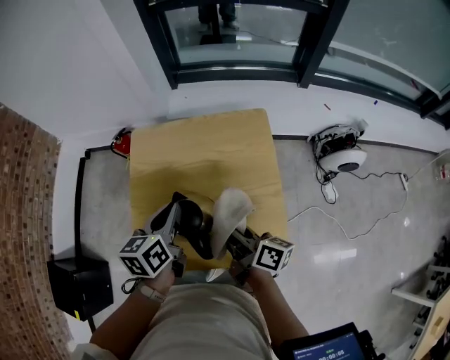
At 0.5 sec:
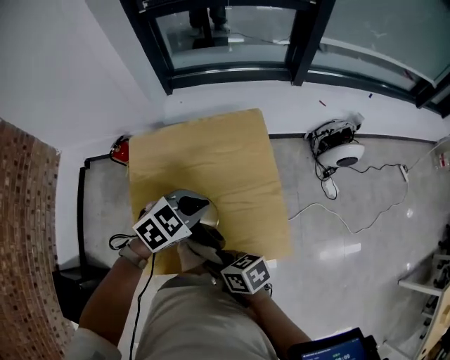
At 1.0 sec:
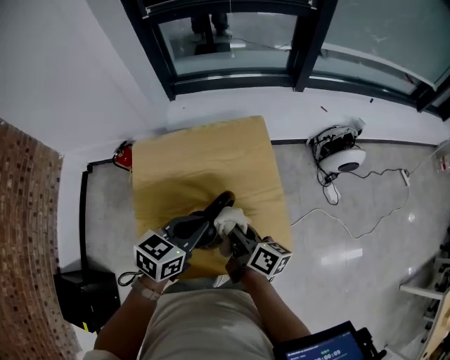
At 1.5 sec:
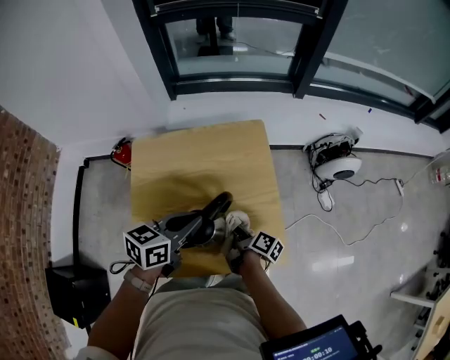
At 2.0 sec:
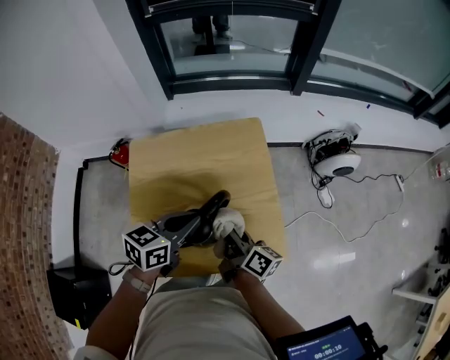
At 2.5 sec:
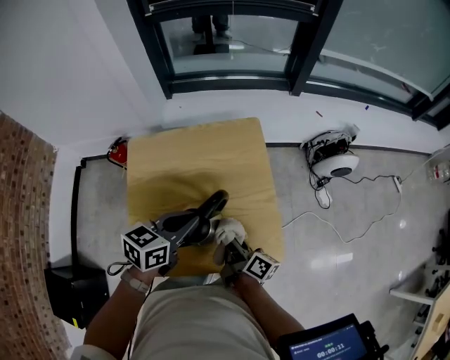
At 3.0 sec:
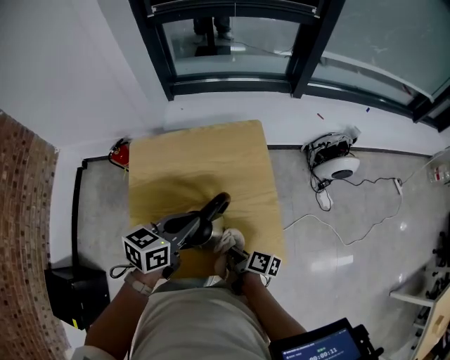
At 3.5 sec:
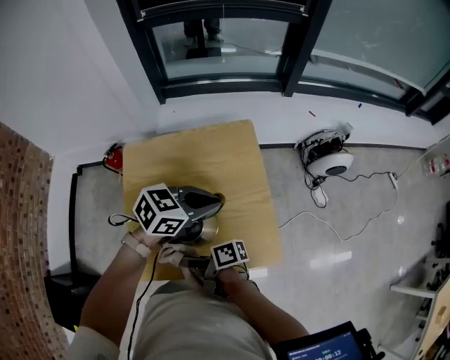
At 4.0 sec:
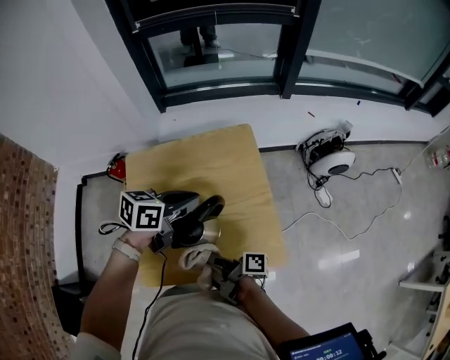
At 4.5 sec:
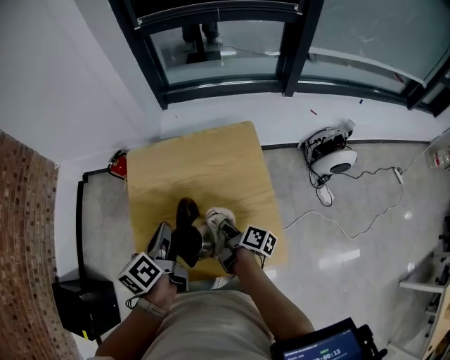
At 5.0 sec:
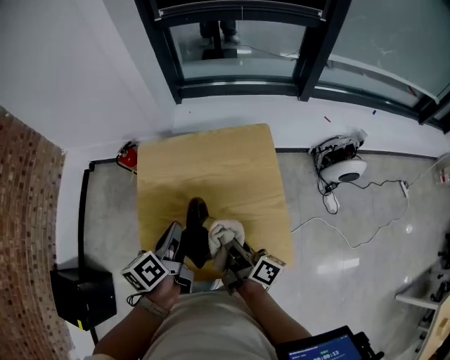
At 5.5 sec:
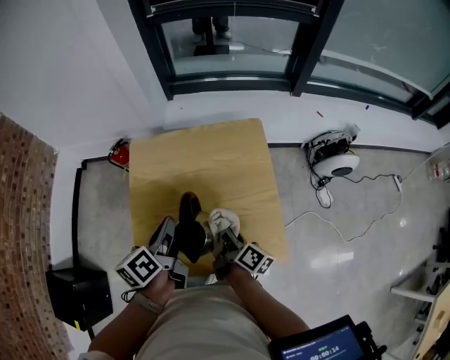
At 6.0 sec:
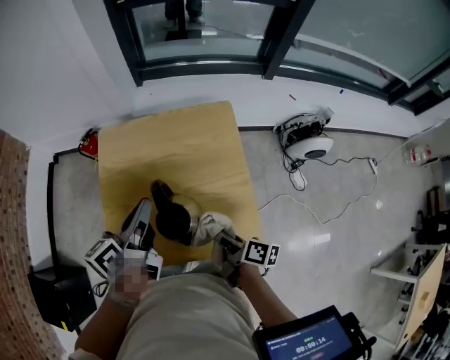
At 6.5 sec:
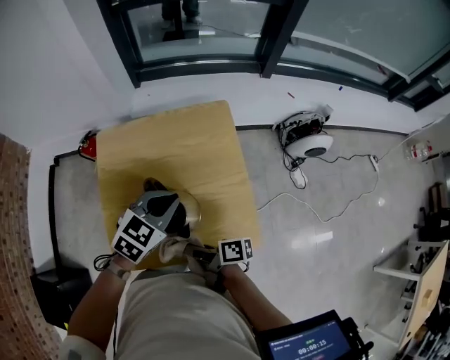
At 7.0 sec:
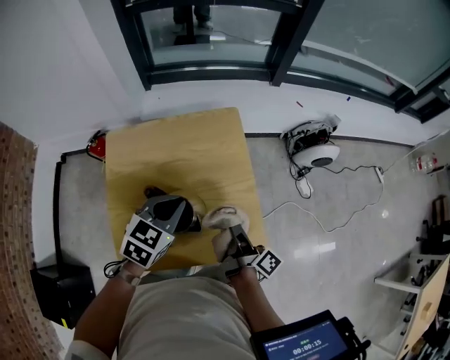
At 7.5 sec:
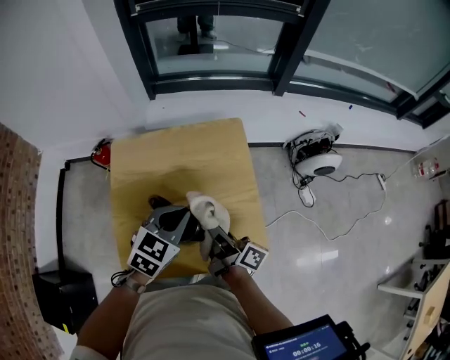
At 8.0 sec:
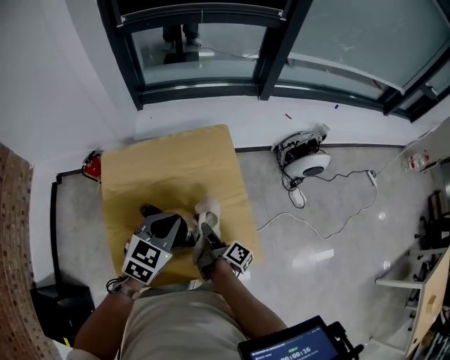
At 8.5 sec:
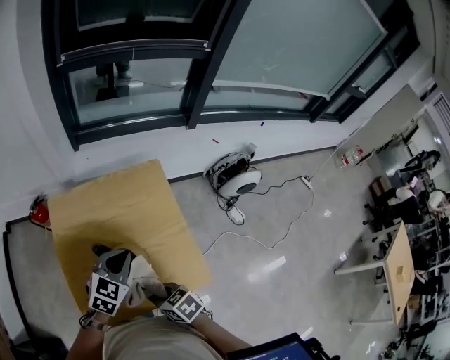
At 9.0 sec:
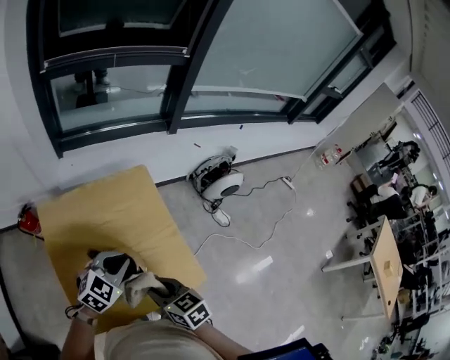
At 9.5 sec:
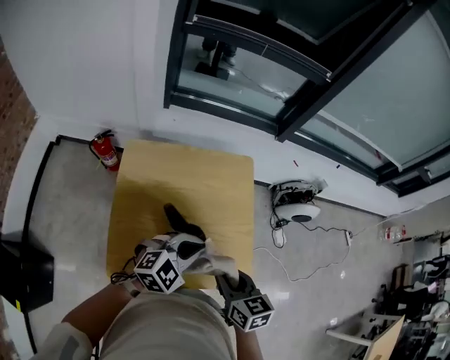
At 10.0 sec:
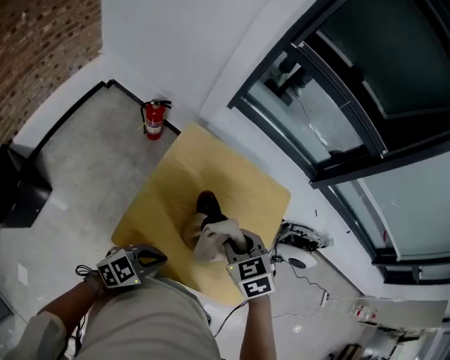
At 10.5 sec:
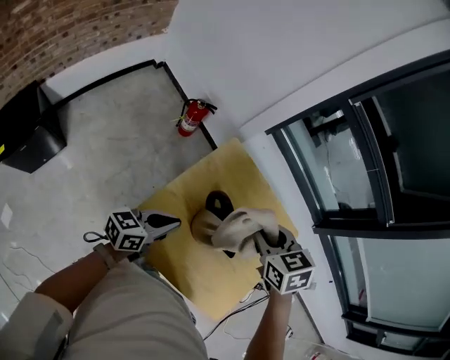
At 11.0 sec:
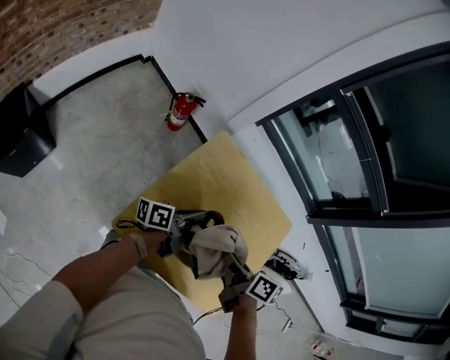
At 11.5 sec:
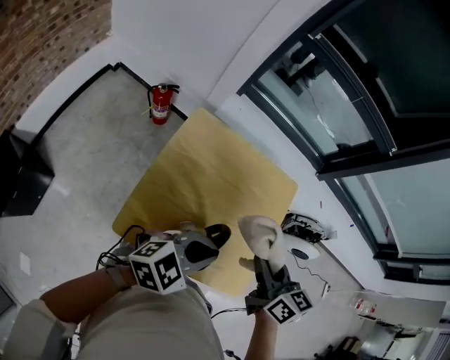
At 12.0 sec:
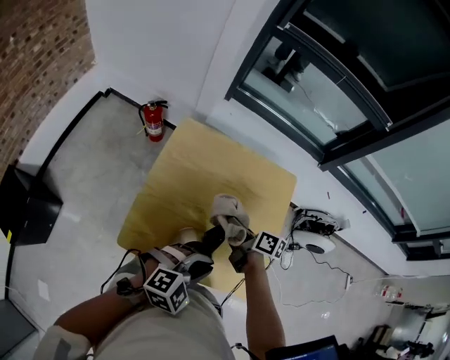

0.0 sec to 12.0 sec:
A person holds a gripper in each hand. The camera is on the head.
0.0 sec to 2.0 sec: The right gripper travels downward and back again, about 15 cm each way, while the left gripper moves approximately 5 cm, and changes its angle by roughly 40 degrees.
2.0 sec to 4.0 sec: The right gripper moves some 10 cm downward and comes back, and turns by approximately 40 degrees. The left gripper moves approximately 5 cm.
4.0 sec to 6.0 sec: The right gripper heads to the right, covering about 10 cm, and swivels about 30 degrees. The left gripper heads to the left, covering approximately 10 cm, and swivels about 50 degrees.
6.0 sec to 8.0 sec: The left gripper is displaced to the right and downward by about 10 cm, and rolls clockwise, seen from behind, by approximately 60 degrees. Meanwhile the right gripper goes left and right, about 15 cm each way, reversing 2 times, and changes its angle by about 30 degrees.
8.0 sec to 10.0 sec: The left gripper is displaced backward and to the left by some 20 cm, and rotates roughly 20 degrees; the right gripper moves upward and to the left, approximately 20 cm, and rolls counterclockwise, seen from behind, by some 110 degrees.
10.0 sec to 12.0 sec: The left gripper goes upward and returns, some 10 cm each way, and rotates about 40 degrees, while the right gripper goes up and down, some 20 cm each way, reversing 3 times, and twists roughly 70 degrees clockwise, seen from behind.

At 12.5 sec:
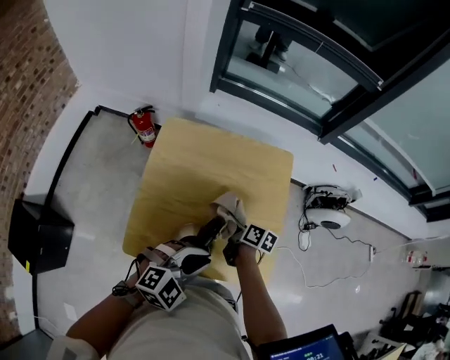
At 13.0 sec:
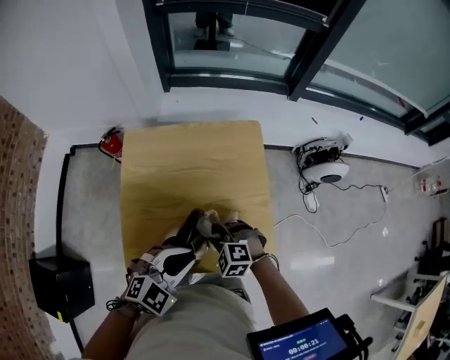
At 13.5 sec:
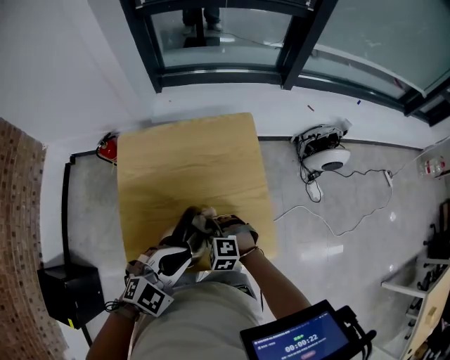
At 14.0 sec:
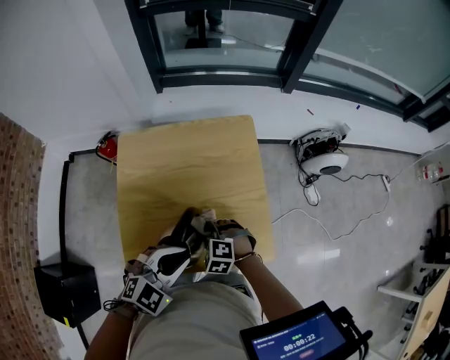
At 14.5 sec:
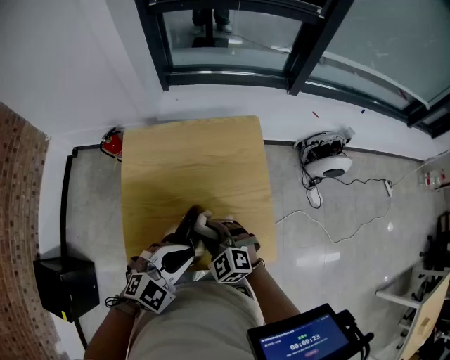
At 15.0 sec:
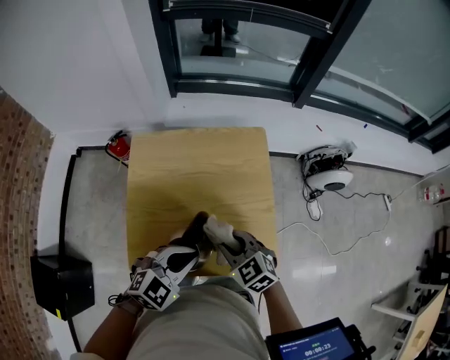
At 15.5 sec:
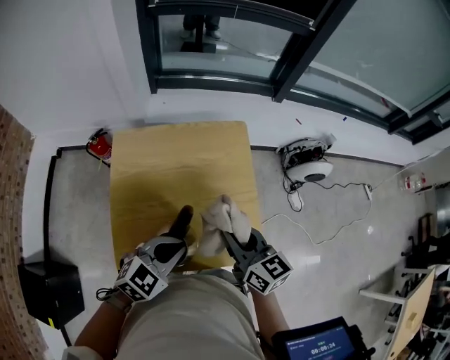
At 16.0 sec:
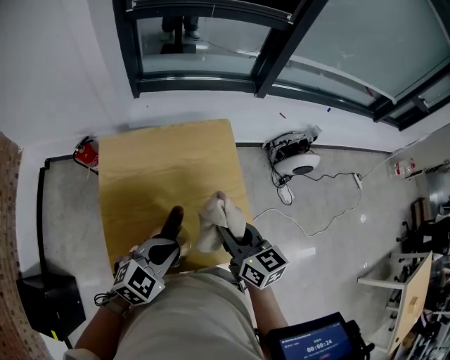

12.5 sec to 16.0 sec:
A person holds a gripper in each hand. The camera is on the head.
12.5 sec to 14.5 sec: The right gripper shifts some 10 cm backward and upward, and rolls counterclockwise, seen from behind, by about 90 degrees.
14.5 sec to 16.0 sec: The right gripper heads upward and to the right, covering approximately 15 cm, and rolls clockwise, seen from behind, by some 50 degrees.

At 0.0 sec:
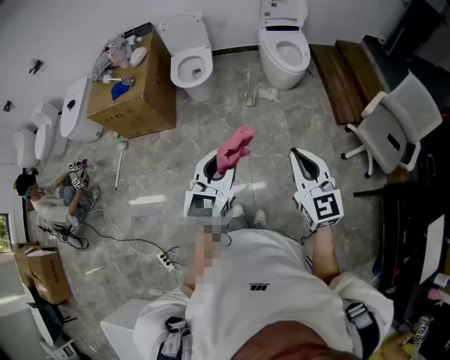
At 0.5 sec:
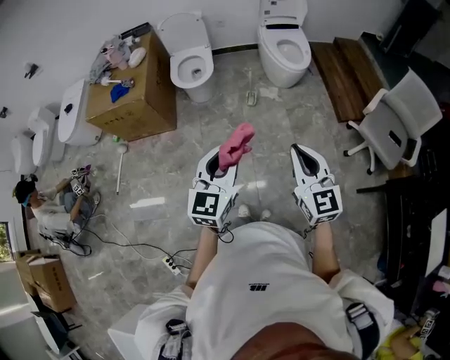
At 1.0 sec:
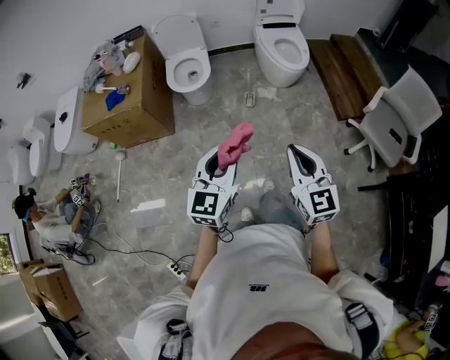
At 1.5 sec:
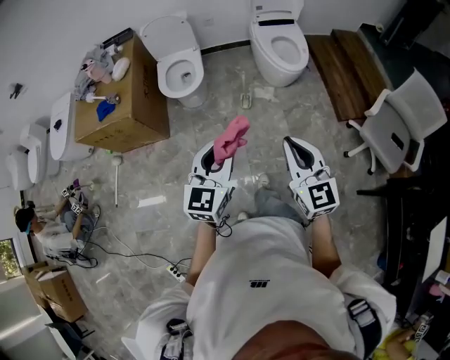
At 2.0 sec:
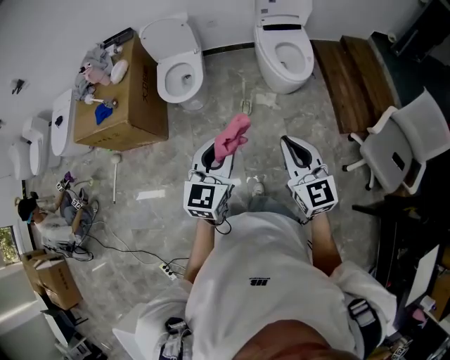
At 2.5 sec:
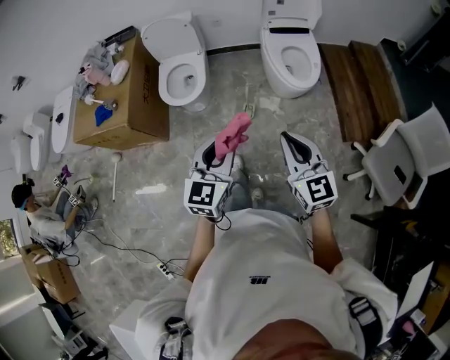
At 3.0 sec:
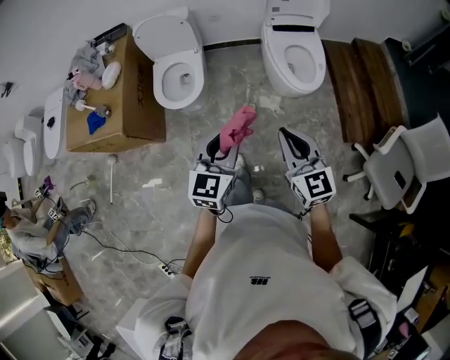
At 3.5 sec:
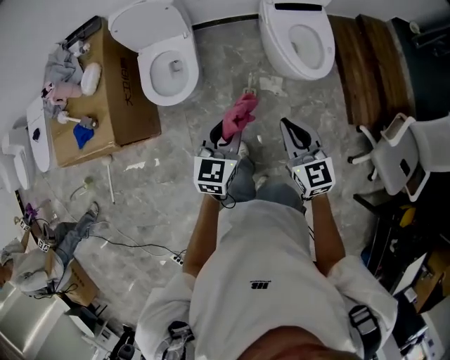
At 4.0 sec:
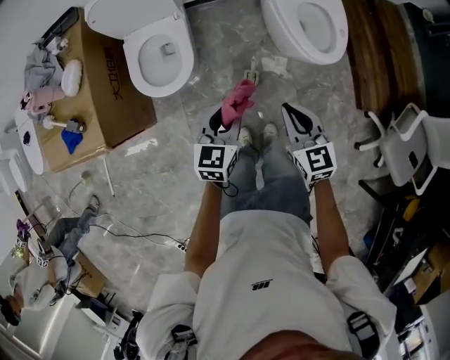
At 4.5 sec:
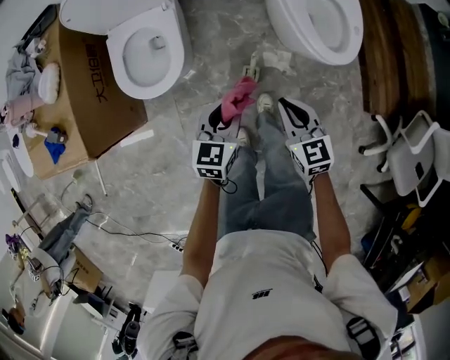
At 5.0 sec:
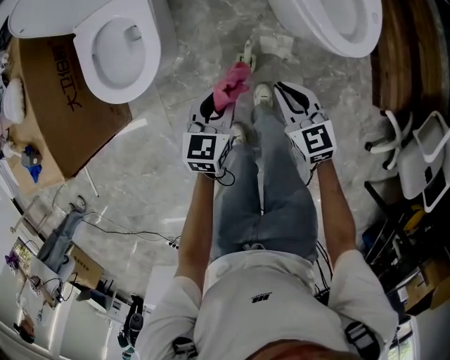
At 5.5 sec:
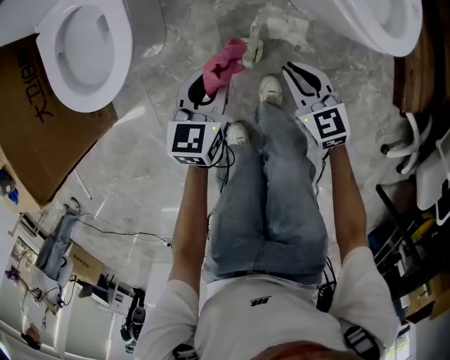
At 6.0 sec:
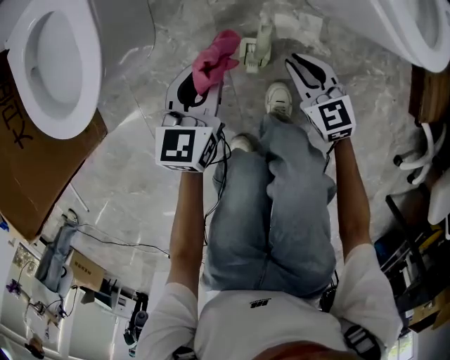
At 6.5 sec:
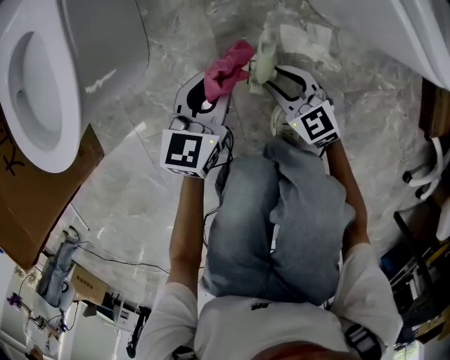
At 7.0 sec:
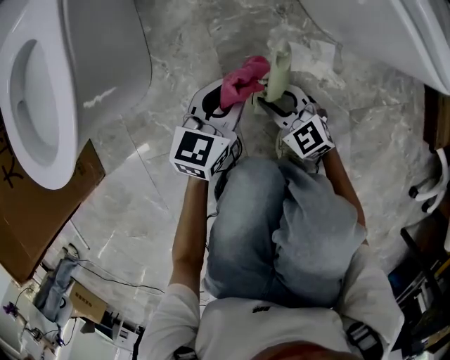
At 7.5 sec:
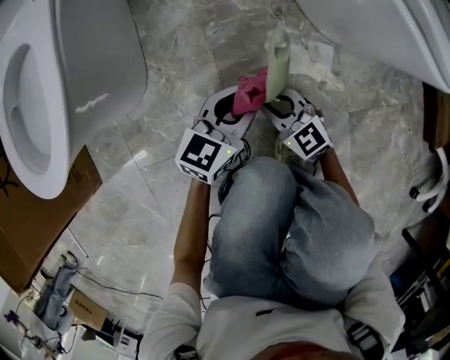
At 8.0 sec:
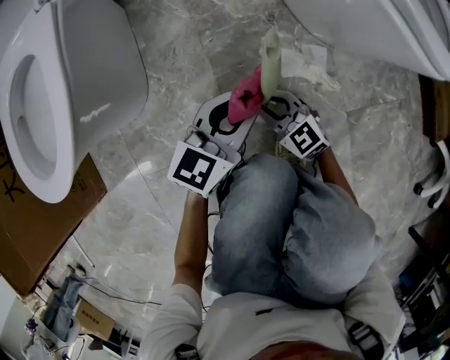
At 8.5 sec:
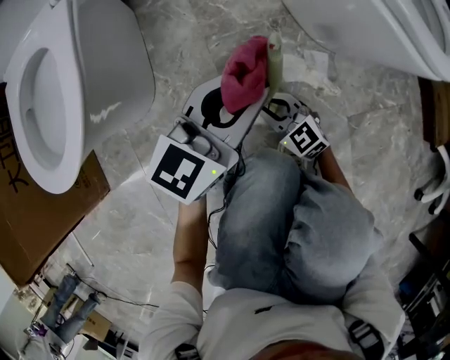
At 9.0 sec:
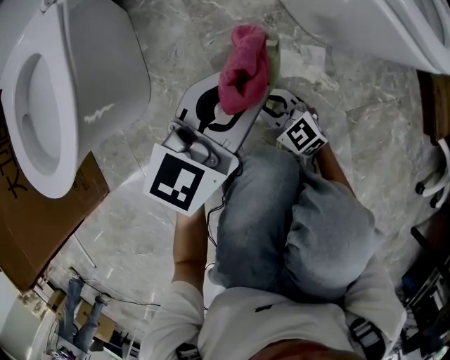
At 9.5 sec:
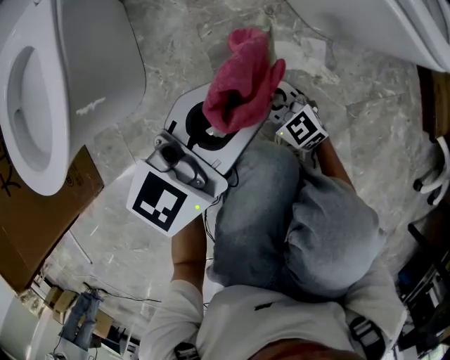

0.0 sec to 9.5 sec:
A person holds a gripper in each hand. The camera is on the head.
0.0 sec to 2.0 sec: The grippers both shift forward by roughly 30 cm.
2.0 sec to 4.0 sec: Both grippers move forward and downward, roughly 50 cm. The left gripper turns by roughly 20 degrees.
4.0 sec to 5.5 sec: Both grippers move downward, some 40 cm.
5.5 sec to 7.5 sec: The grippers both shift downward by roughly 25 cm. The left gripper changes its angle by roughly 20 degrees.
7.5 sec to 9.5 sec: The left gripper shifts some 20 cm upward, and rotates about 20 degrees.

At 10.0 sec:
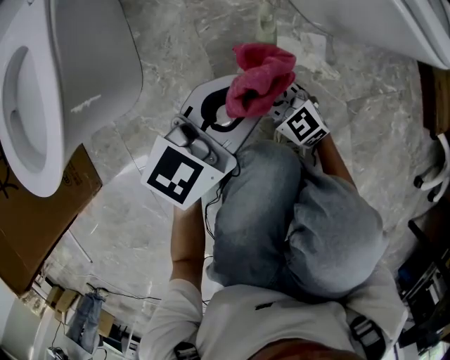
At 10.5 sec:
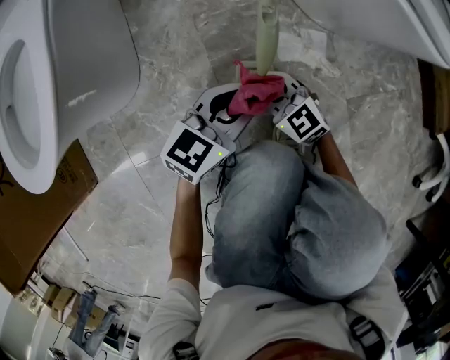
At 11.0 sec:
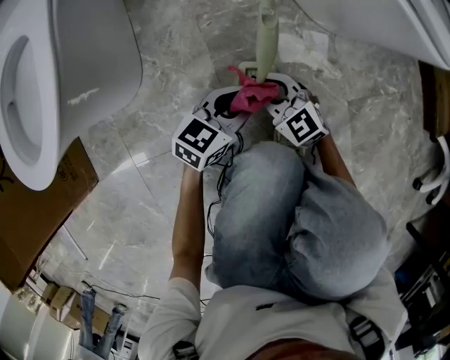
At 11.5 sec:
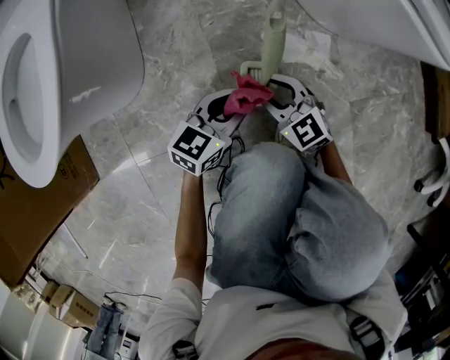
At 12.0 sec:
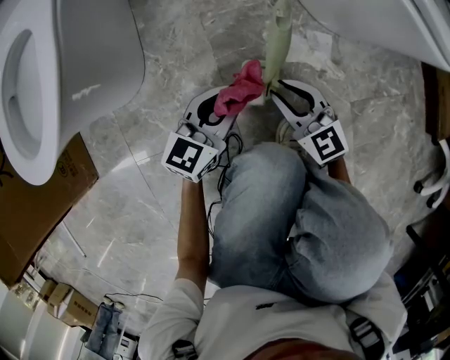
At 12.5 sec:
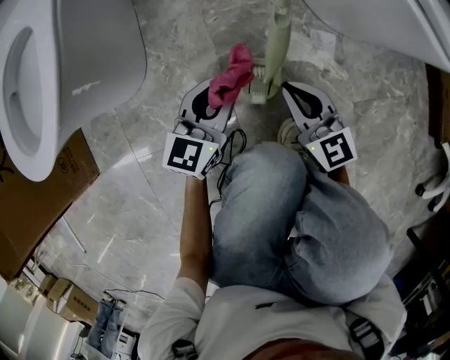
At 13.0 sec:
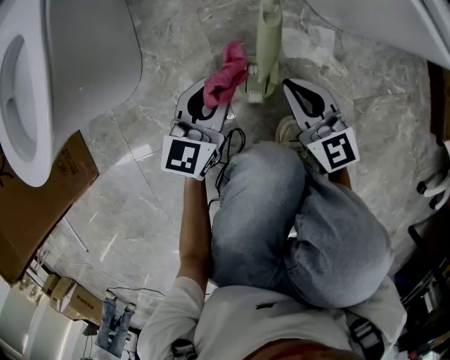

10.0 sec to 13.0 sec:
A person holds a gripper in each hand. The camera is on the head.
10.0 sec to 11.5 sec: The left gripper travels downward by roughly 15 cm.
11.5 sec to 13.0 sec: The right gripper is displaced upward by about 5 cm, swivels about 20 degrees, and closes; the left gripper moves about 5 cm, and swivels some 20 degrees.
